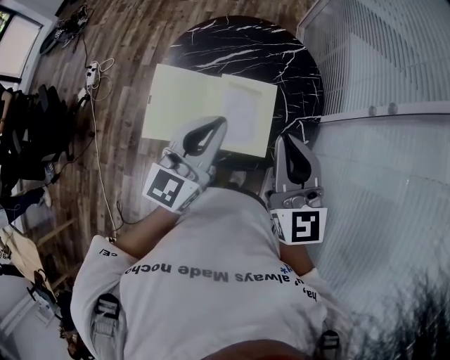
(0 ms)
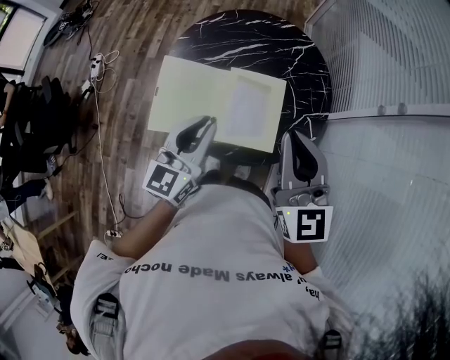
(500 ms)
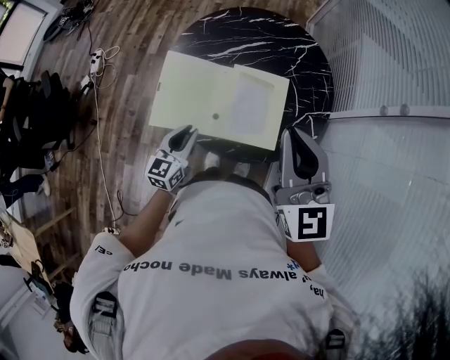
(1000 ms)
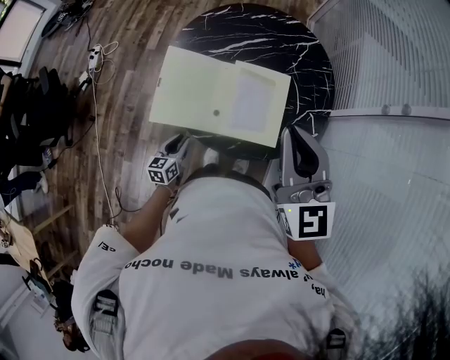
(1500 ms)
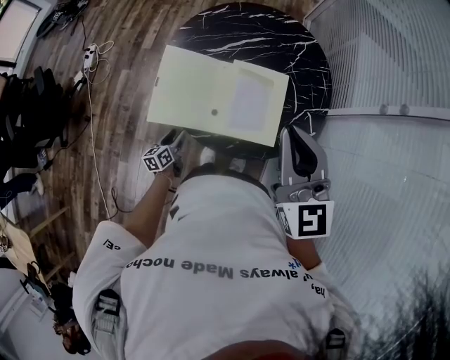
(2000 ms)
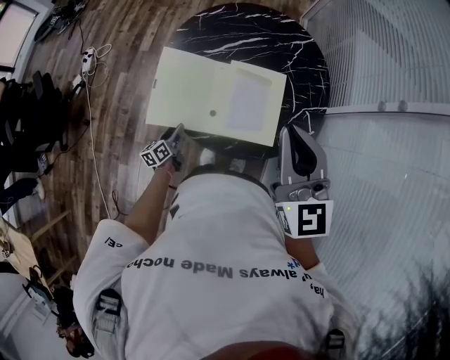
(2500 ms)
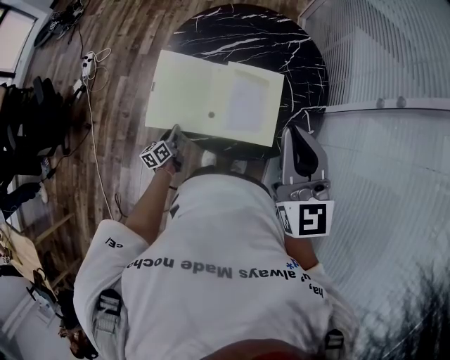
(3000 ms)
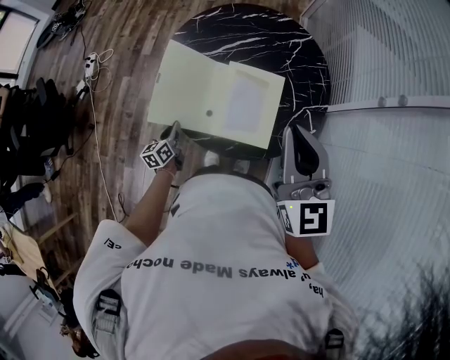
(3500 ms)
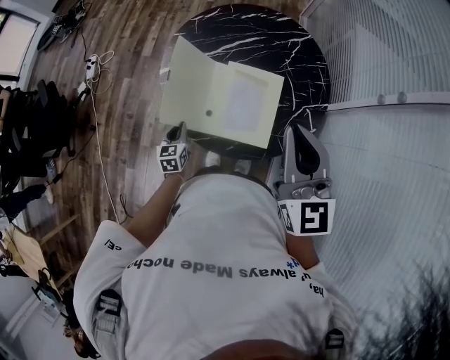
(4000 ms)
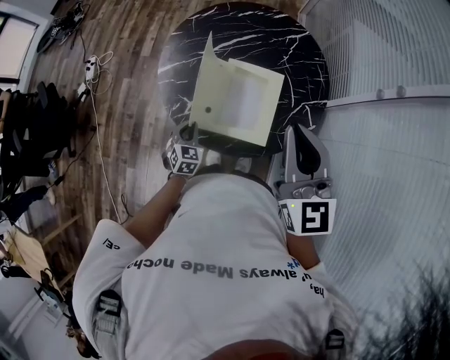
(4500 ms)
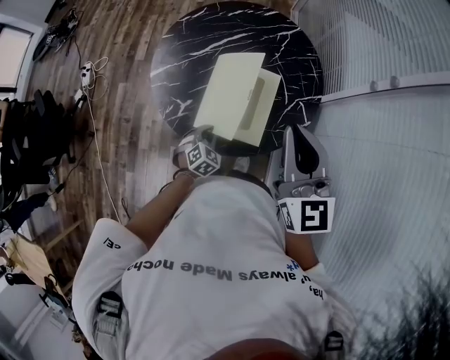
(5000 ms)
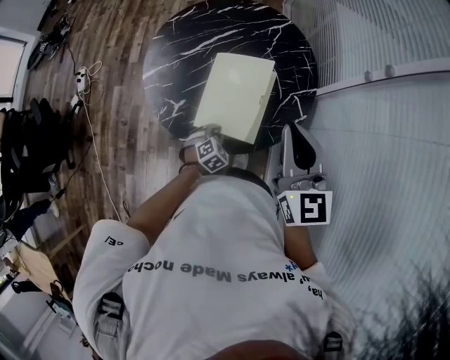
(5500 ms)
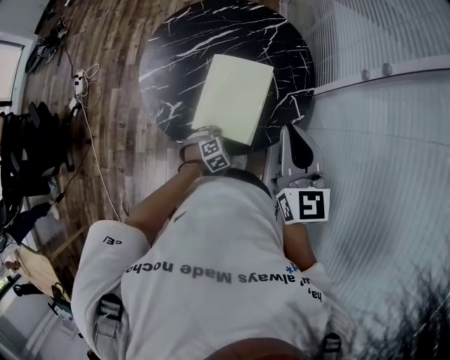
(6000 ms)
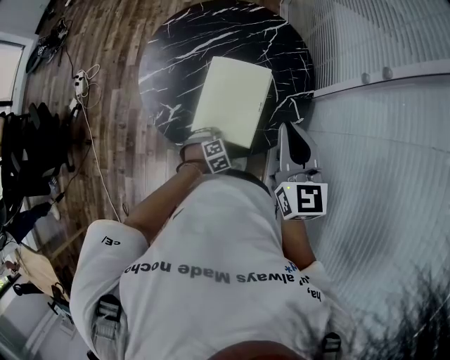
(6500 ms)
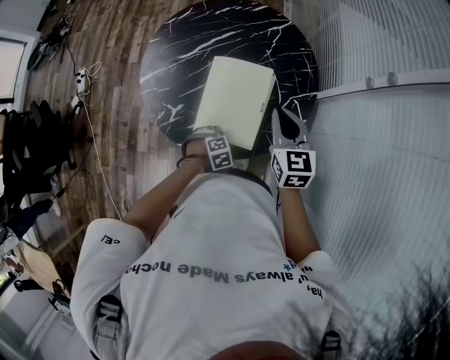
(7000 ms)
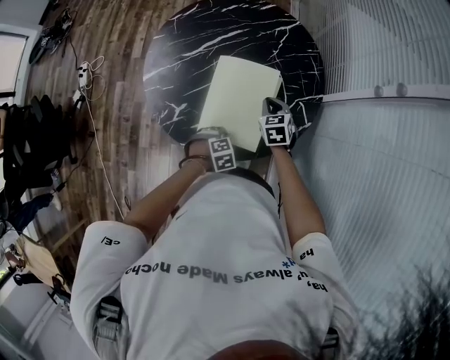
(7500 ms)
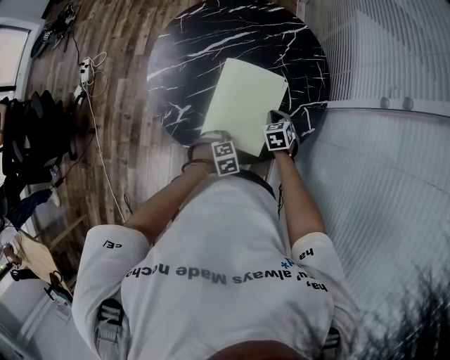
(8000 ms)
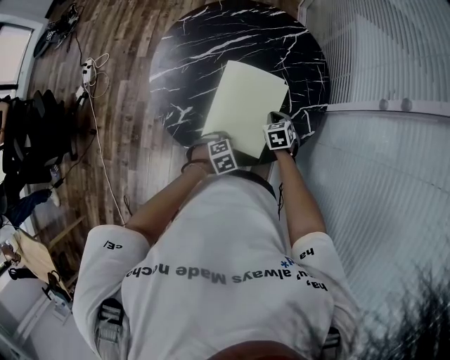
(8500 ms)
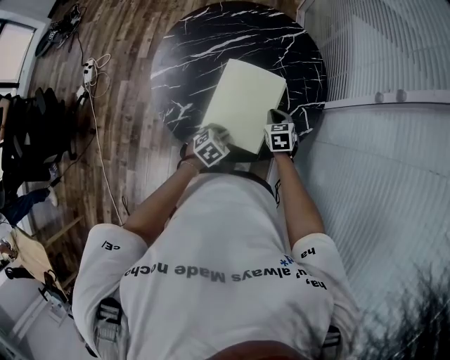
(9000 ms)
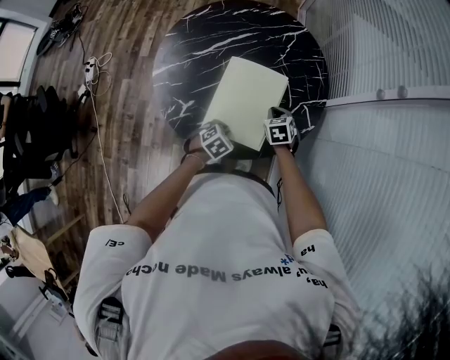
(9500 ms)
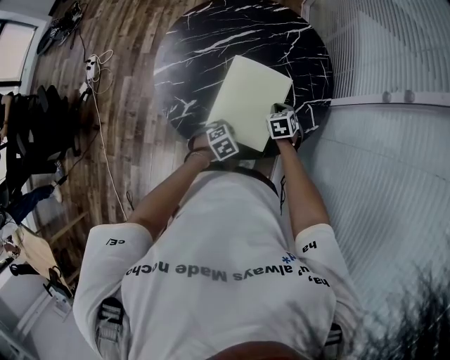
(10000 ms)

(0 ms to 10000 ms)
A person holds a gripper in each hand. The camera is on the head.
0 ms - 2000 ms: The right gripper heads to the left, covering some 5 cm. The left gripper travels downward and to the left by about 50 cm, changes its angle by about 50 degrees, and opens up.
2000 ms - 4000 ms: The left gripper heads upward, covering some 10 cm, turns by some 30 degrees, and closes.
4000 ms - 6000 ms: The right gripper is displaced to the right and downward by about 10 cm; the left gripper moves to the right, some 20 cm, and rotates around the line of its fingers by roughly 60 degrees, clockwise from behind.
6000 ms - 8000 ms: The right gripper shifts some 40 cm downward, and angles its fingers downward, by about 50 degrees.

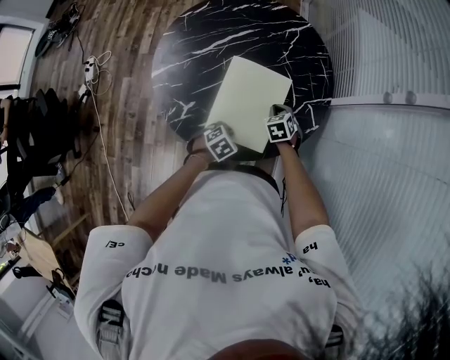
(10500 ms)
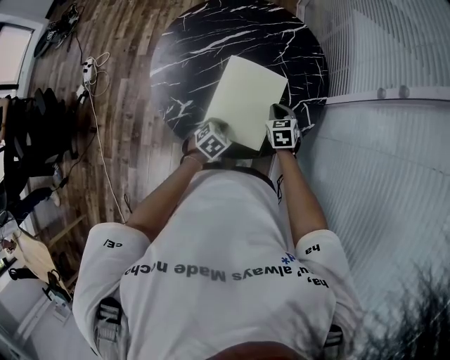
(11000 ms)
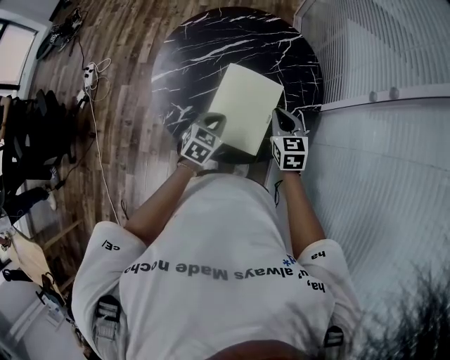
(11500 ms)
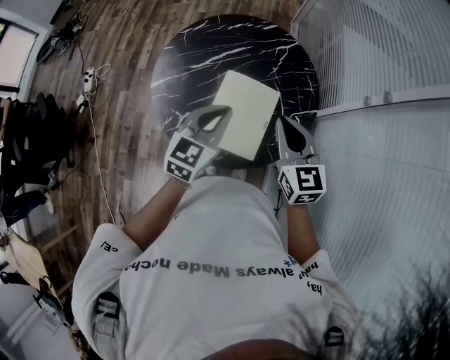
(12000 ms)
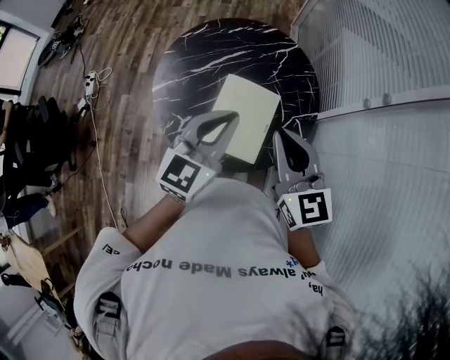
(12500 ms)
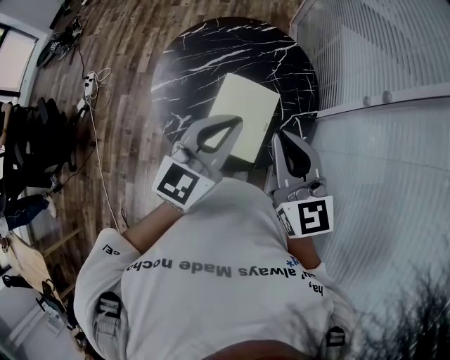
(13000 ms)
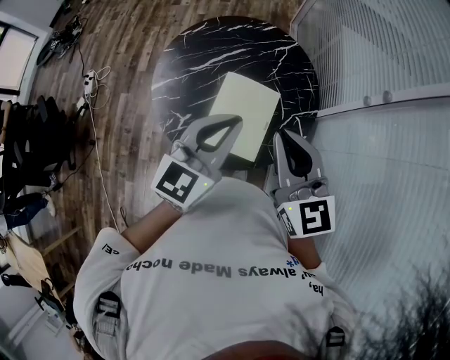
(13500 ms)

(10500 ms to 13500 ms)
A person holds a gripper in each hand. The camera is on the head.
10500 ms - 12000 ms: The two grippers go approximately 35 cm upward. The right gripper angles its fingers upward, by some 40 degrees; the left gripper tips its fingers upward by some 50 degrees.
12000 ms - 13500 ms: Both grippers move upward, approximately 10 cm.

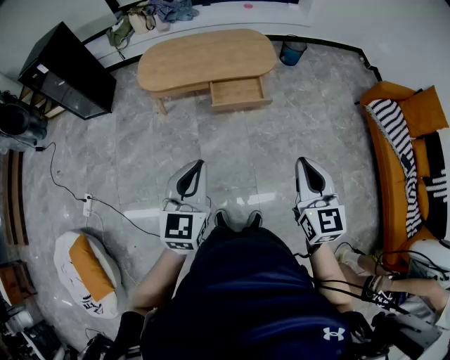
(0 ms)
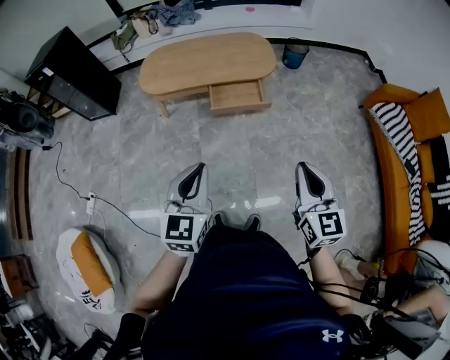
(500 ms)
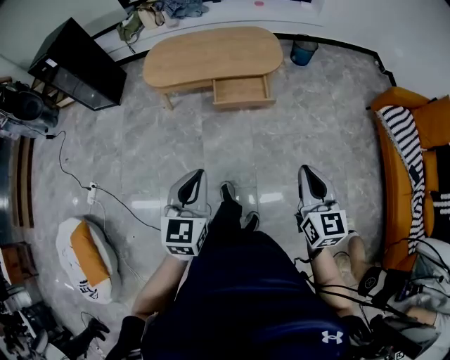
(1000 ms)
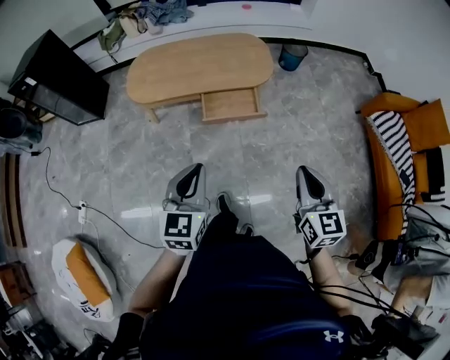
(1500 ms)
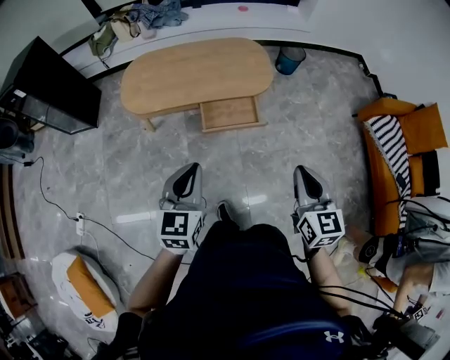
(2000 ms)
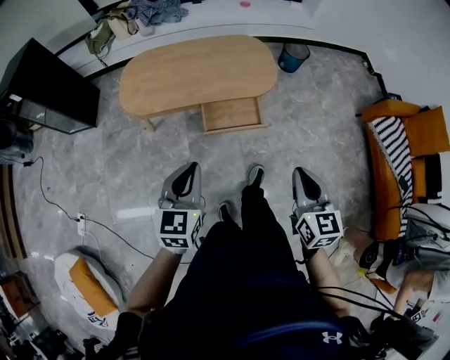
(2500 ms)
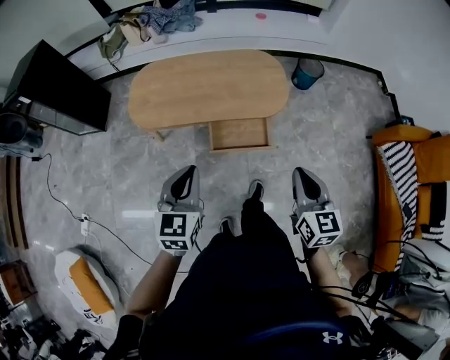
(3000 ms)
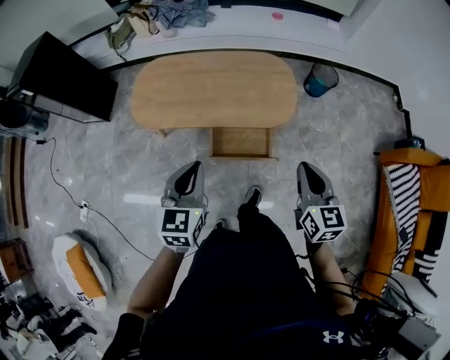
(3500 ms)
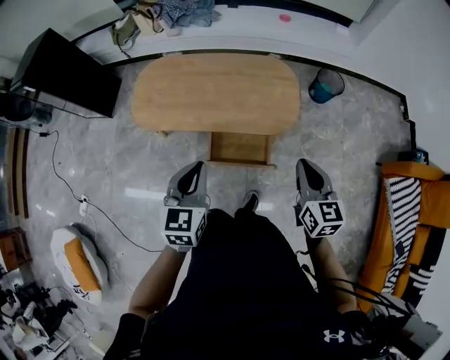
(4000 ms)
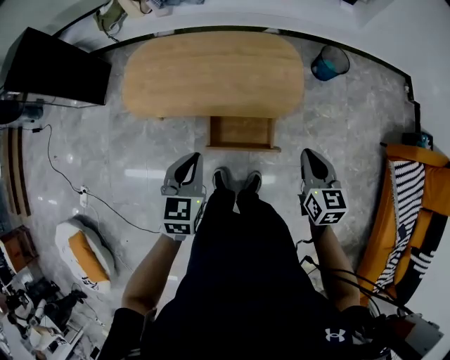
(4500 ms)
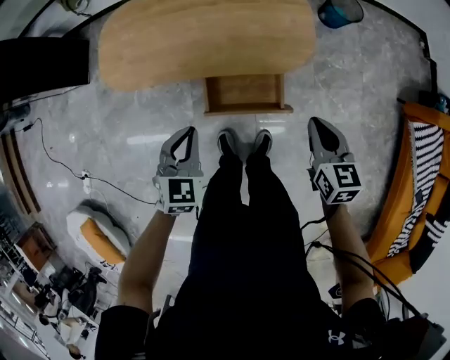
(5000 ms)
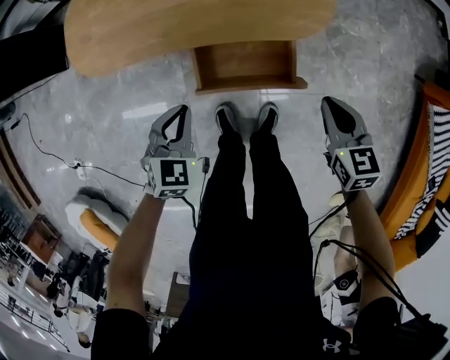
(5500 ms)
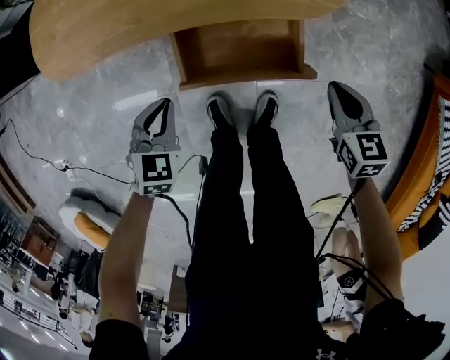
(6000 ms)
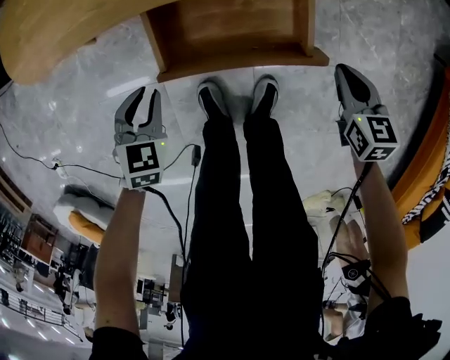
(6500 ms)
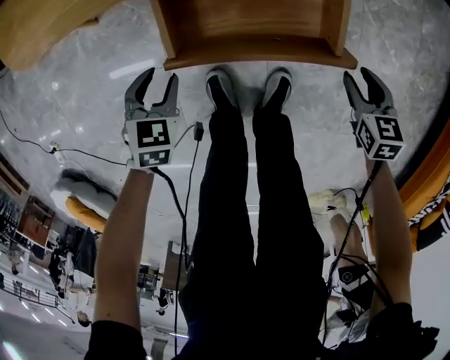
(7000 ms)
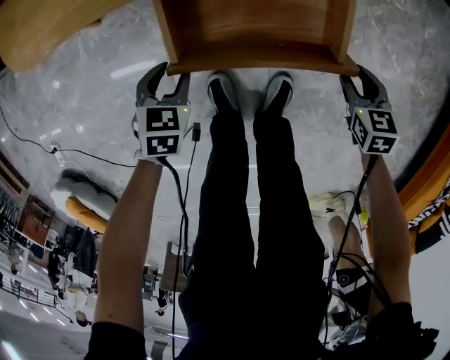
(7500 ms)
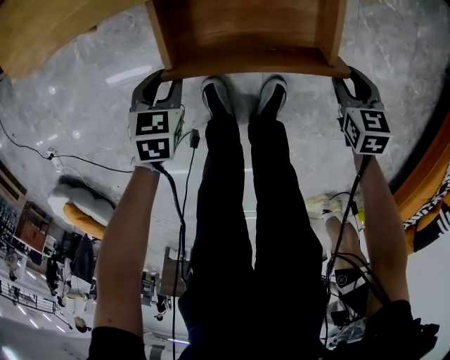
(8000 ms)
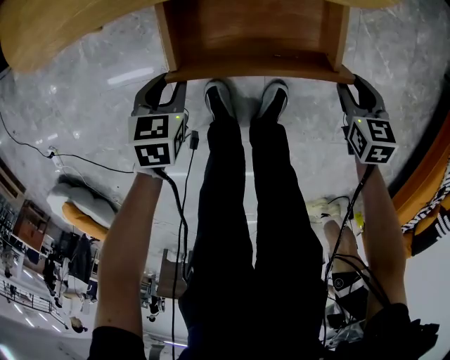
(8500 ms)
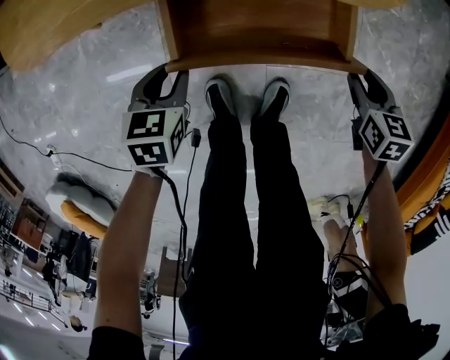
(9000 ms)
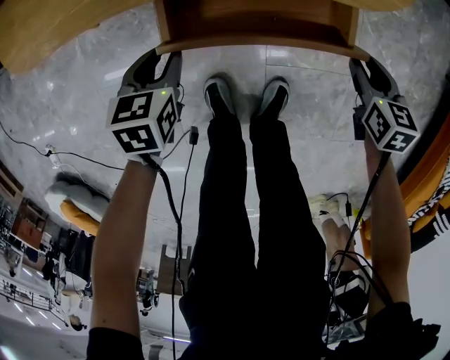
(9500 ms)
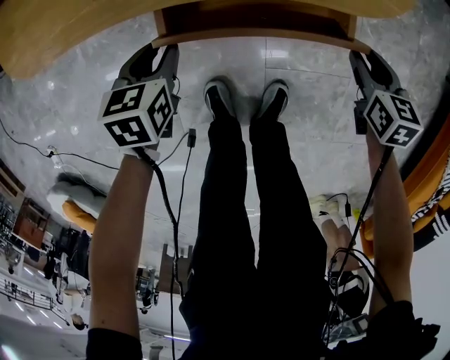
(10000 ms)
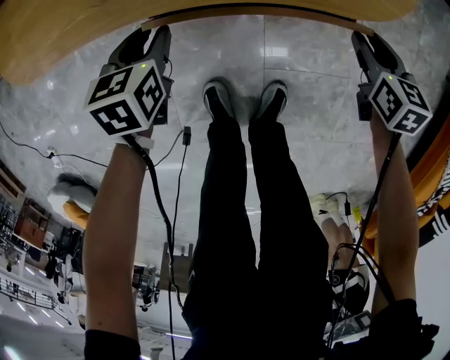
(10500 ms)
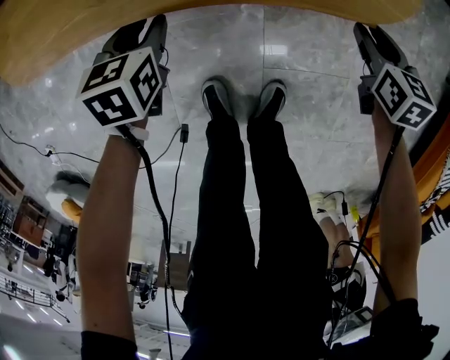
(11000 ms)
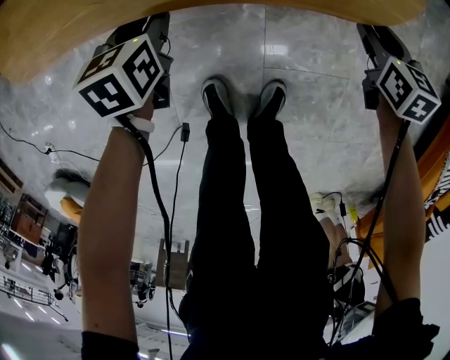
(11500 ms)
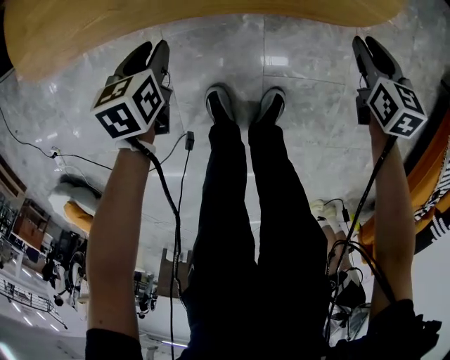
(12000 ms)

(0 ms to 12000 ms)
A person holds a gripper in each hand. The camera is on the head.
0 ms - 2000 ms: The grippers both shift forward by about 20 cm.
2000 ms - 4000 ms: The grippers both shift forward by roughly 30 cm.
4000 ms - 6000 ms: Both grippers travel together downward, about 40 cm. The right gripper rotates about 30 degrees. Meanwhile the left gripper swivels approximately 40 degrees.
6000 ms - 8000 ms: The grippers both shift downward by approximately 20 cm. The left gripper turns by approximately 20 degrees, and opens its fingers, while the right gripper opens its fingers.
8000 ms - 10000 ms: Both grippers travel together forward, about 10 cm.
10000 ms - 12000 ms: The left gripper goes forward and returns, roughly 10 cm each way, while the right gripper goes some 5 cm forward.

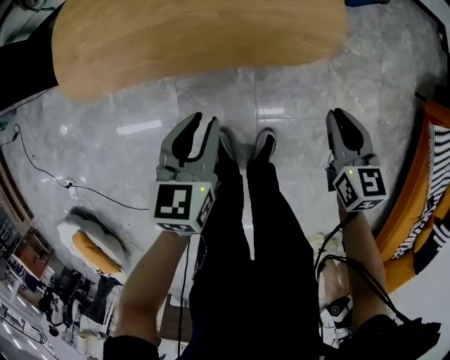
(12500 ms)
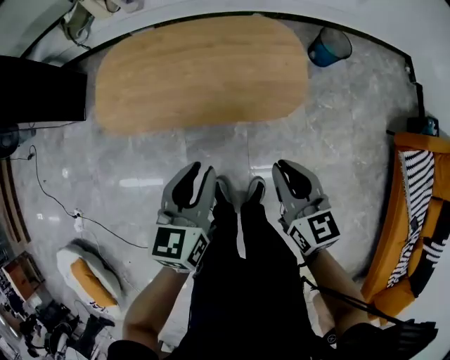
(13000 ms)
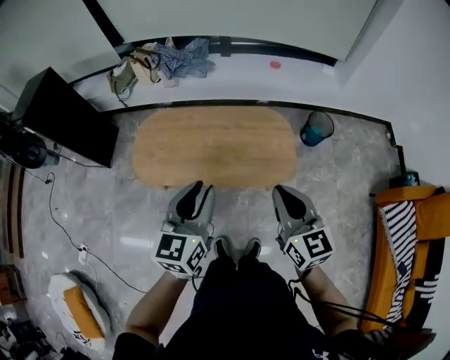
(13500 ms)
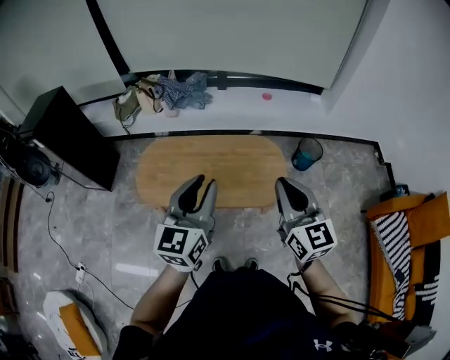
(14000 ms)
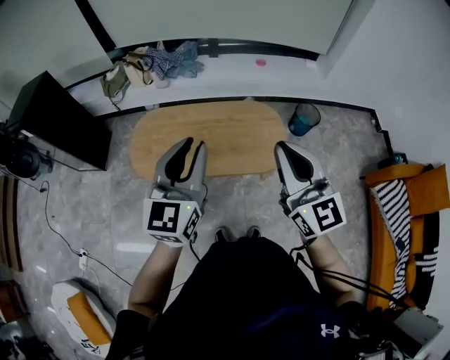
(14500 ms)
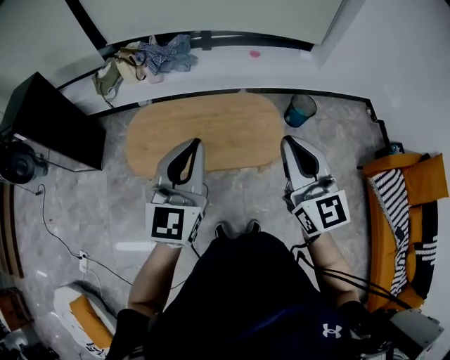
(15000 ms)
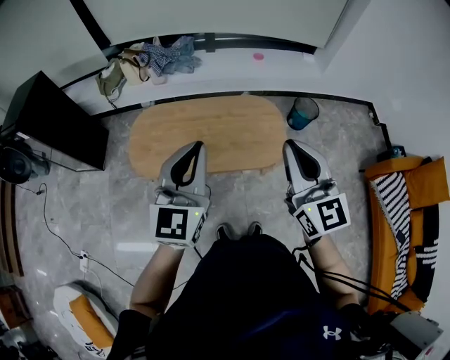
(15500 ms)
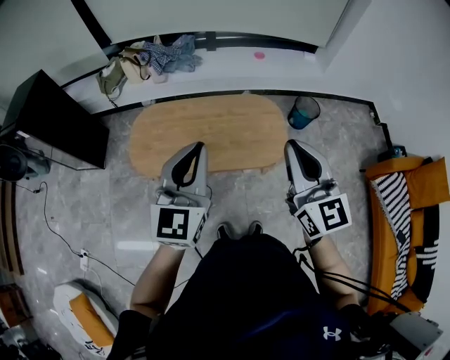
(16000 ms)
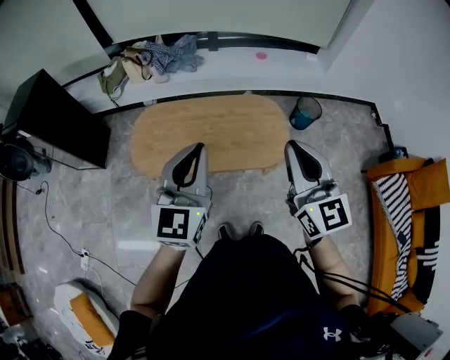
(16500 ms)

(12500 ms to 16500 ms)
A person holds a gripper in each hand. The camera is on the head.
12500 ms - 14500 ms: The grippers both shift upward by about 60 cm. The right gripper points its fingers some 50 degrees further upward. Meanwhile the left gripper angles its fingers upward, by roughly 40 degrees.
14500 ms - 16500 ms: The left gripper closes up.
